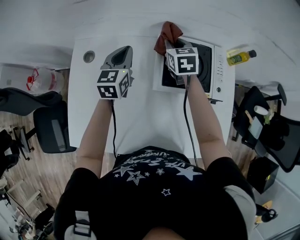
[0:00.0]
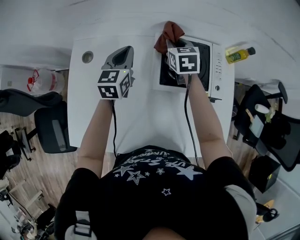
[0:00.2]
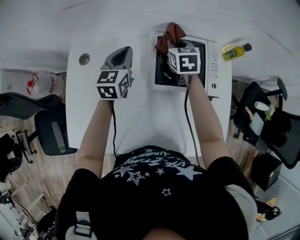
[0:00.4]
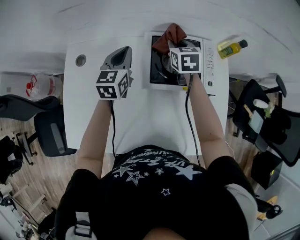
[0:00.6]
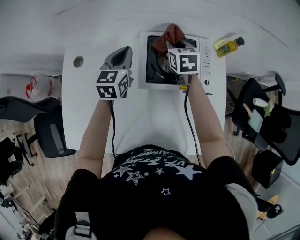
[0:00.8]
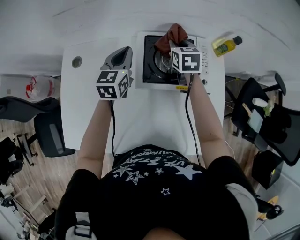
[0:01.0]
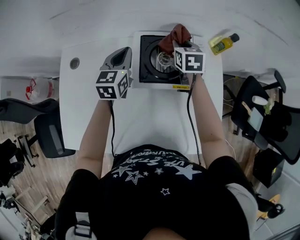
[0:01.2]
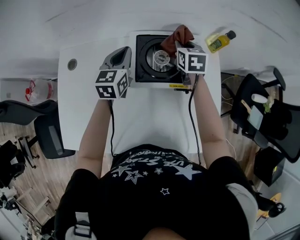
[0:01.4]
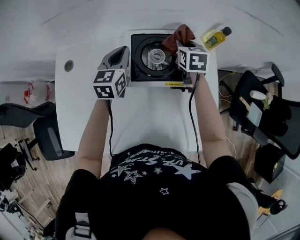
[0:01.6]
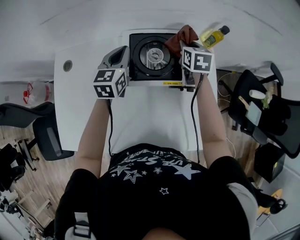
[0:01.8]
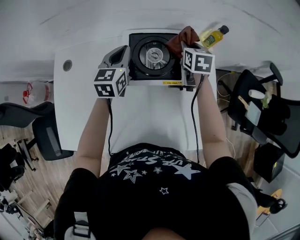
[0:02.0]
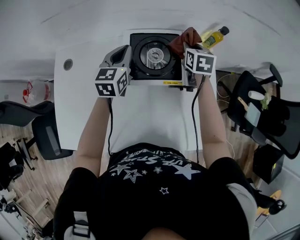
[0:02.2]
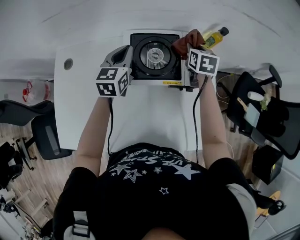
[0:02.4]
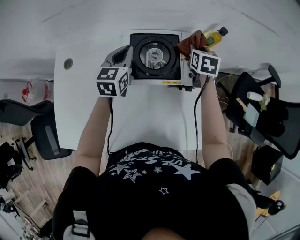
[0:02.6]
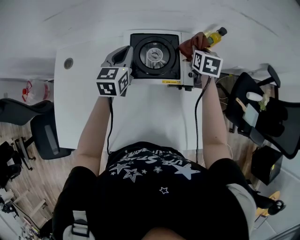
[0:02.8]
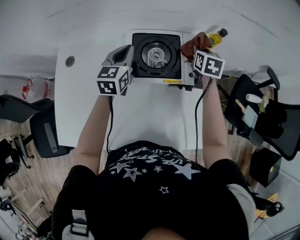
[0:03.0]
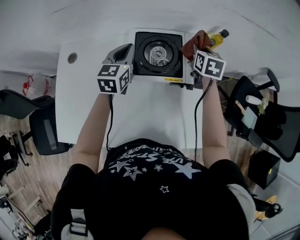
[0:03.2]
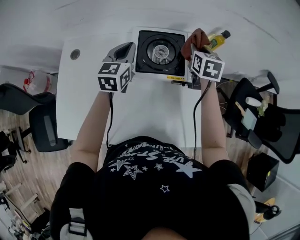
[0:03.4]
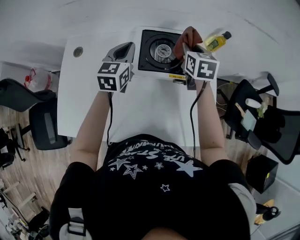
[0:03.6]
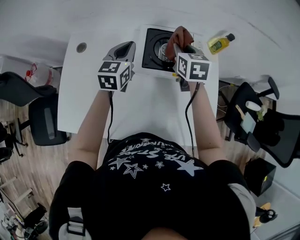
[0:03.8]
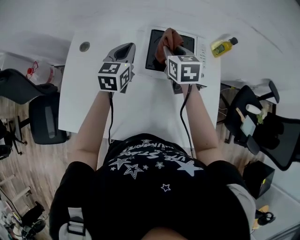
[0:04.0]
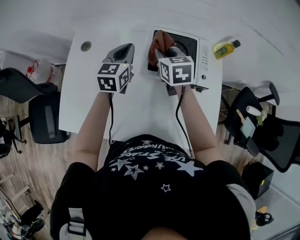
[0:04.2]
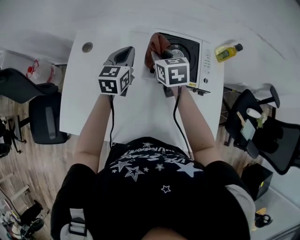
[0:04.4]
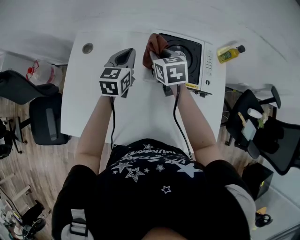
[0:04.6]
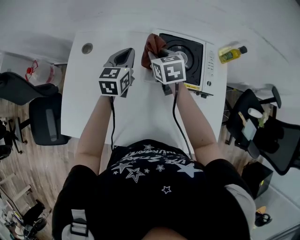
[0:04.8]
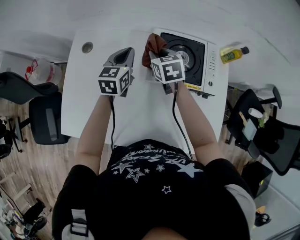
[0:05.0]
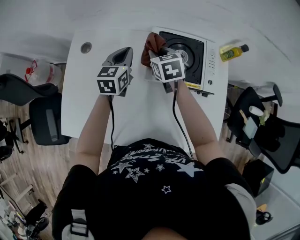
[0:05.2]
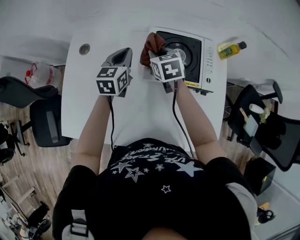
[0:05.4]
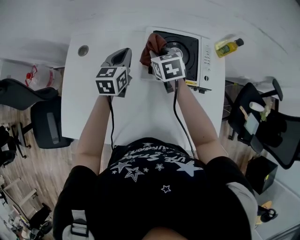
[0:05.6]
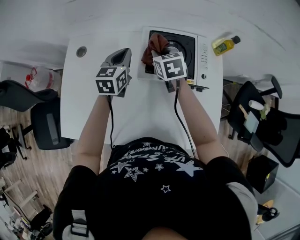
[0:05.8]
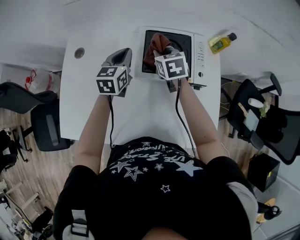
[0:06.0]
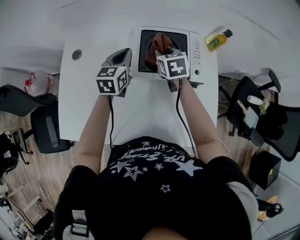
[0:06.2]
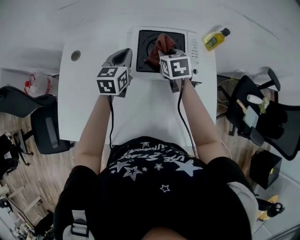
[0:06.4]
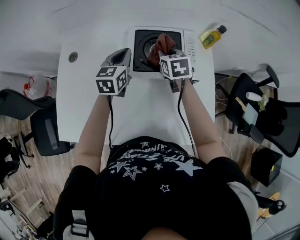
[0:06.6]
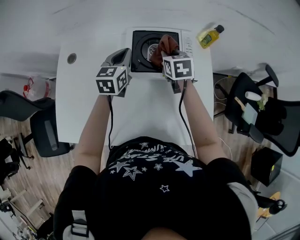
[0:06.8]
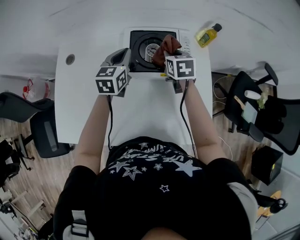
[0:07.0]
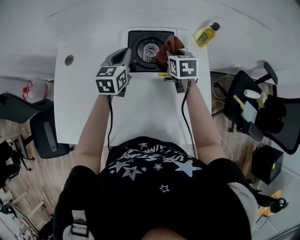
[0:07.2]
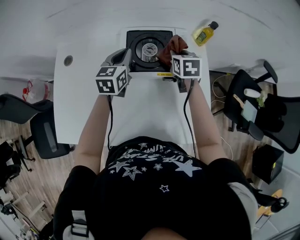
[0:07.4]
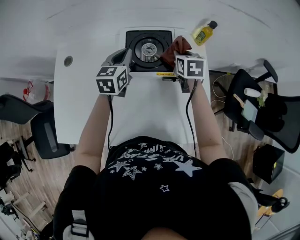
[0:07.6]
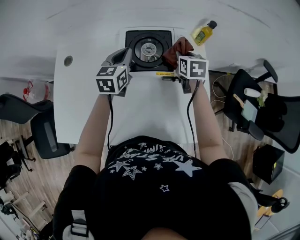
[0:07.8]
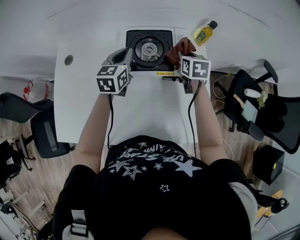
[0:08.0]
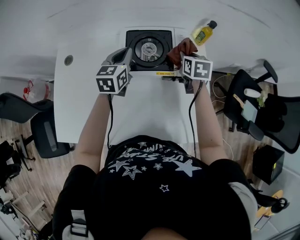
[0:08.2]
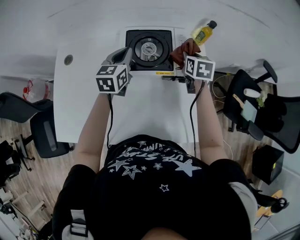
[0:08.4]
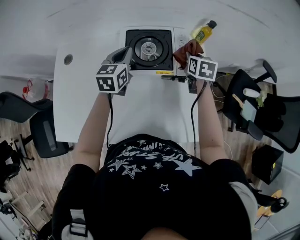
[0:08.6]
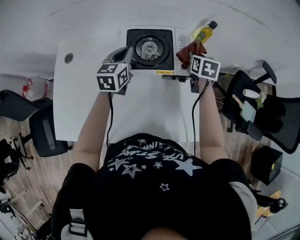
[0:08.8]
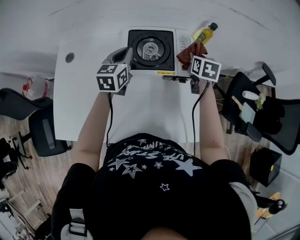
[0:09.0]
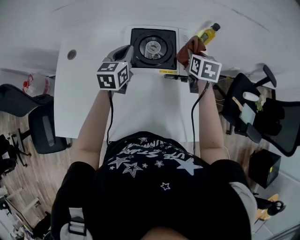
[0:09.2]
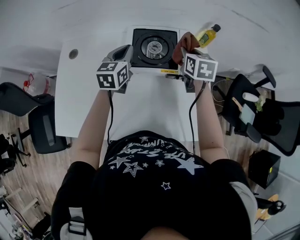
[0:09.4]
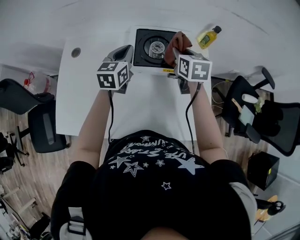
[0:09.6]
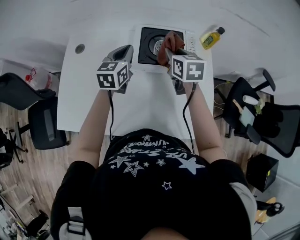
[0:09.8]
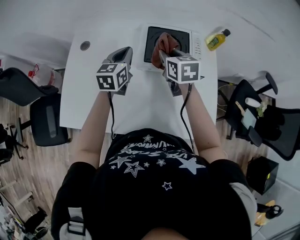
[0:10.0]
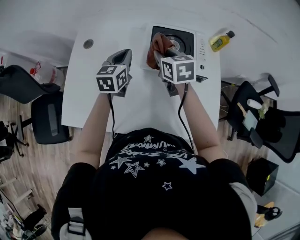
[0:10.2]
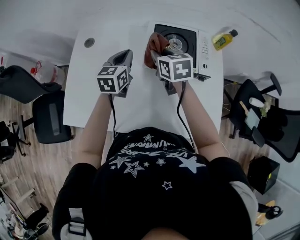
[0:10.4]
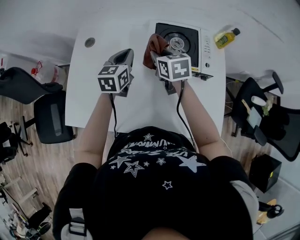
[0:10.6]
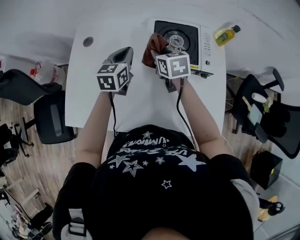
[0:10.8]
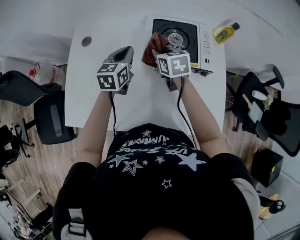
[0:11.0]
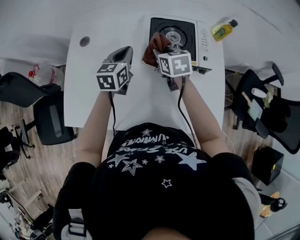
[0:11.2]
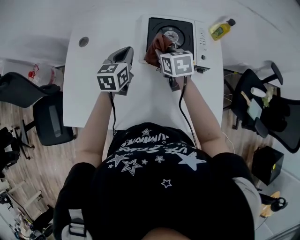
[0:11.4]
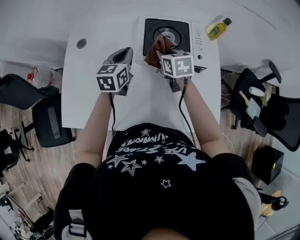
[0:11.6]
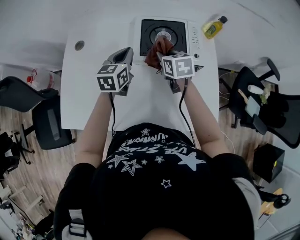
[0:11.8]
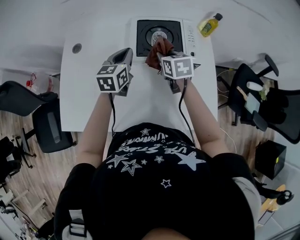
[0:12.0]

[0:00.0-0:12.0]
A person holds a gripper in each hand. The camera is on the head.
0:00.0 to 0:01.6: The right gripper is displaced to the right by some 20 cm. Meanwhile the left gripper goes some 15 cm to the right.
0:01.6 to 0:03.0: The right gripper heads to the right, covering some 10 cm.
0:03.0 to 0:04.4: The right gripper goes approximately 30 cm to the left, and turns by about 30 degrees; the left gripper moves to the left, approximately 10 cm.
0:04.4 to 0:06.0: The right gripper heads to the right, covering roughly 5 cm.
0:06.0 to 0:07.6: The right gripper is displaced to the right by about 20 cm; the left gripper travels to the right by some 10 cm.
0:07.6 to 0:09.0: The right gripper travels to the right by approximately 5 cm.
0:09.0 to 0:10.4: The right gripper shifts approximately 30 cm to the left, and rotates about 30 degrees, while the left gripper shifts about 15 cm to the left and backward.
0:10.4 to 0:12.0: The left gripper travels to the right by some 5 cm, while the right gripper is displaced to the right and downward by approximately 10 cm.

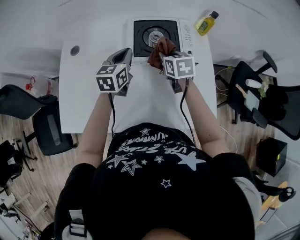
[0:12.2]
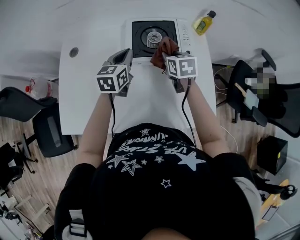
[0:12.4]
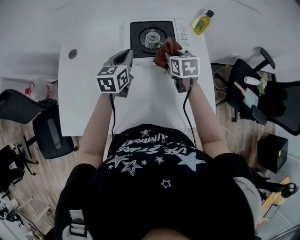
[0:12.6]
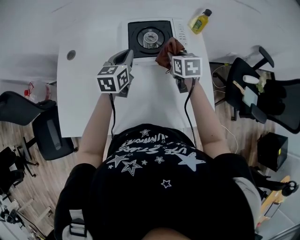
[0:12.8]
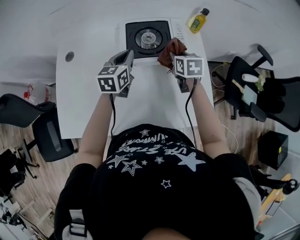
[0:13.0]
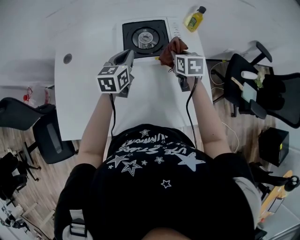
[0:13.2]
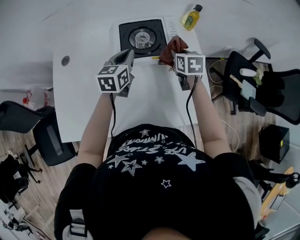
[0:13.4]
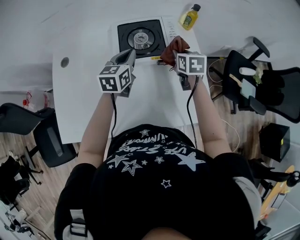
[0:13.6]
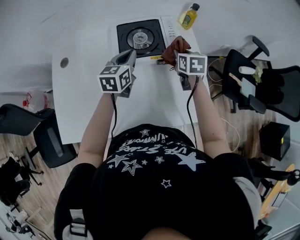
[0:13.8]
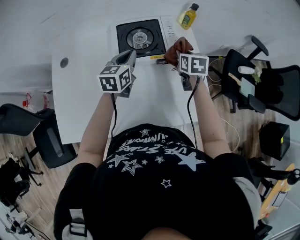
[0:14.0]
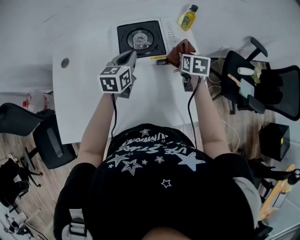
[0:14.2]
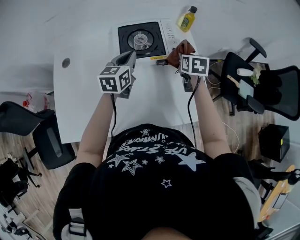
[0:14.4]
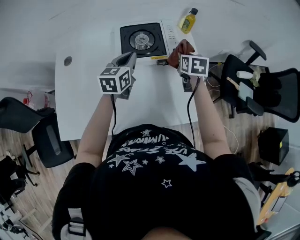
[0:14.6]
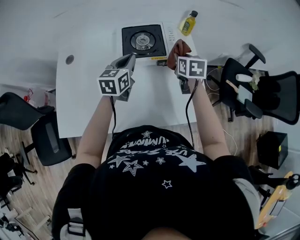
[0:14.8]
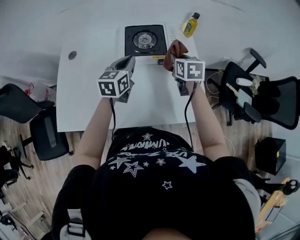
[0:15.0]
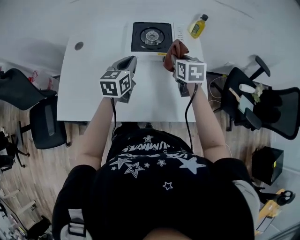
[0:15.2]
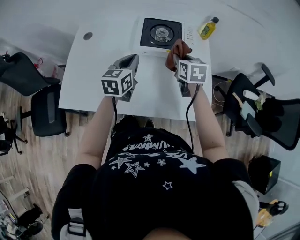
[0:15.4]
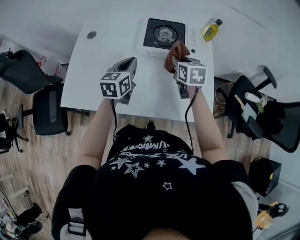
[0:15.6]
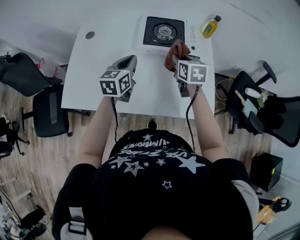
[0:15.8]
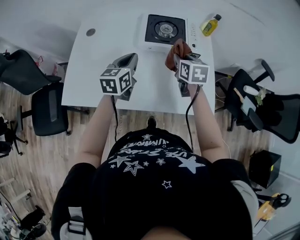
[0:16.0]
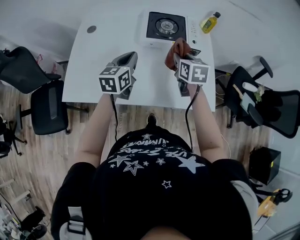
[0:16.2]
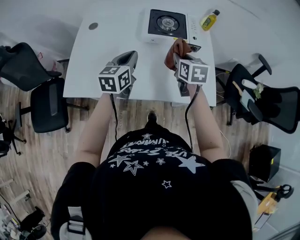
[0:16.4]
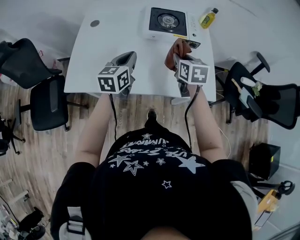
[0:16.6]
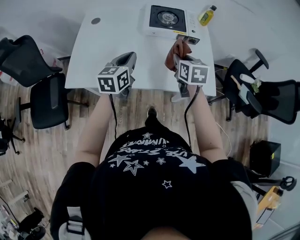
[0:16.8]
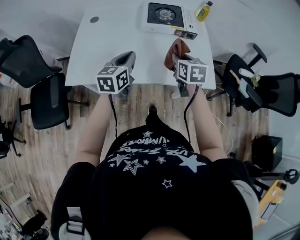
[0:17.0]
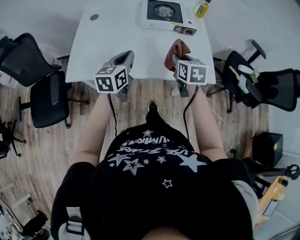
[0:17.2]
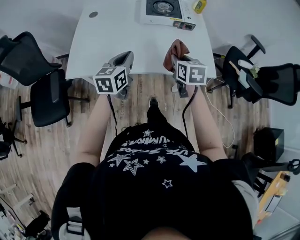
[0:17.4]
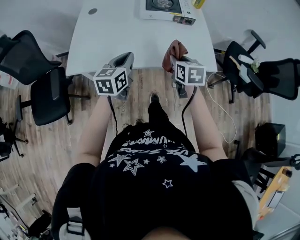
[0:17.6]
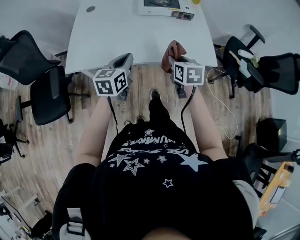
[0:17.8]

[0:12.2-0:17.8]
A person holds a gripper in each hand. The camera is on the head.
0:12.2 to 0:13.6: The left gripper shifts roughly 5 cm to the right. The right gripper shifts roughly 15 cm to the right.
0:13.6 to 0:15.0: The right gripper heads backward and upward, covering about 10 cm, while the left gripper goes about 5 cm backward.
0:15.0 to 0:16.4: Both grippers travel together backward and to the left, some 15 cm.
0:16.4 to 0:17.8: Both grippers move backward, roughly 20 cm.

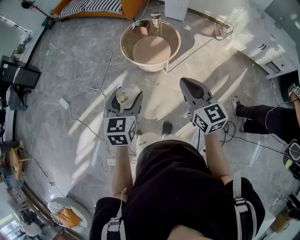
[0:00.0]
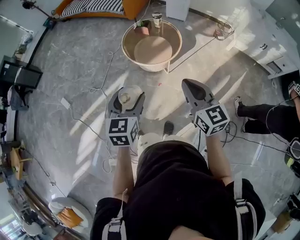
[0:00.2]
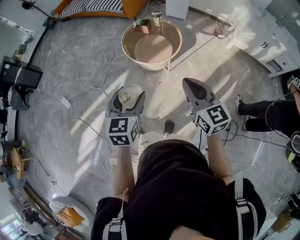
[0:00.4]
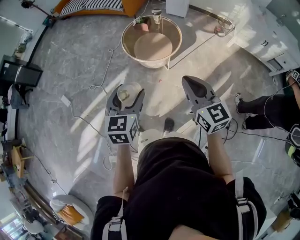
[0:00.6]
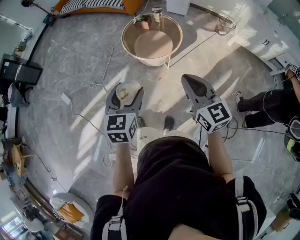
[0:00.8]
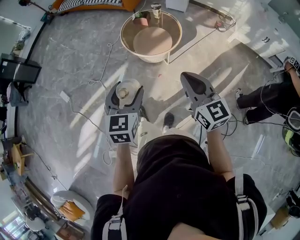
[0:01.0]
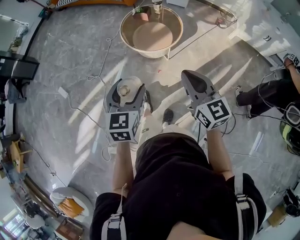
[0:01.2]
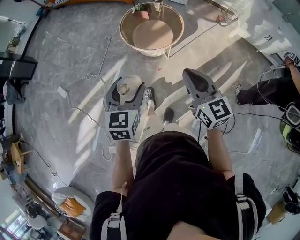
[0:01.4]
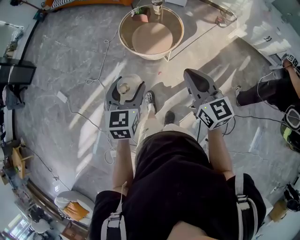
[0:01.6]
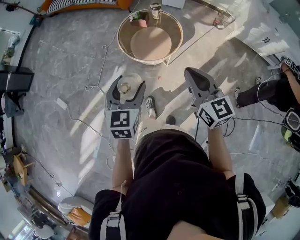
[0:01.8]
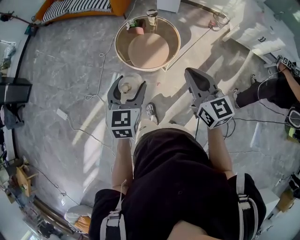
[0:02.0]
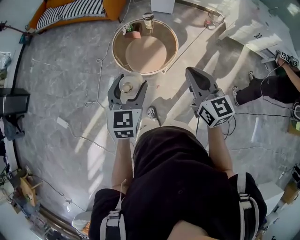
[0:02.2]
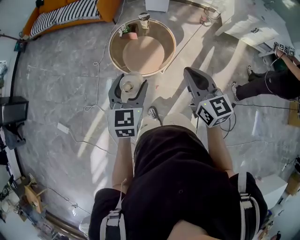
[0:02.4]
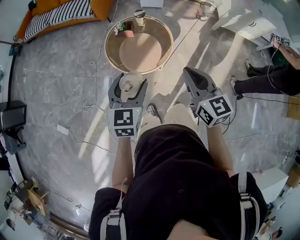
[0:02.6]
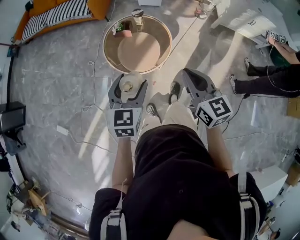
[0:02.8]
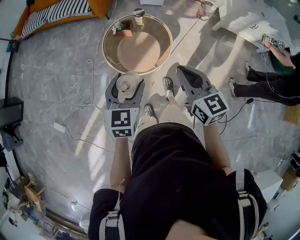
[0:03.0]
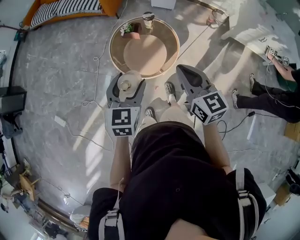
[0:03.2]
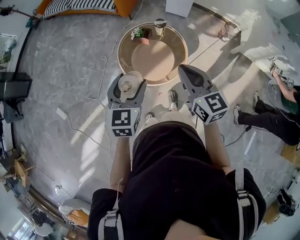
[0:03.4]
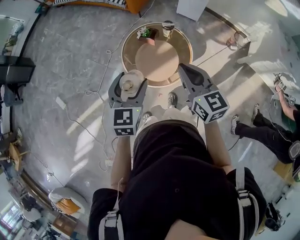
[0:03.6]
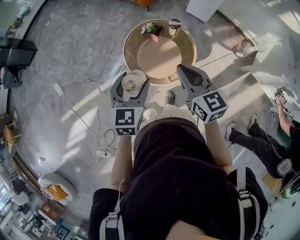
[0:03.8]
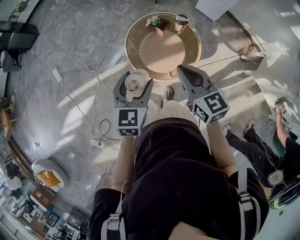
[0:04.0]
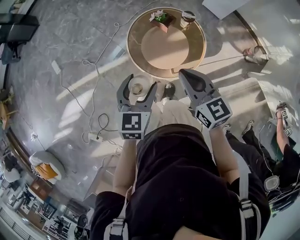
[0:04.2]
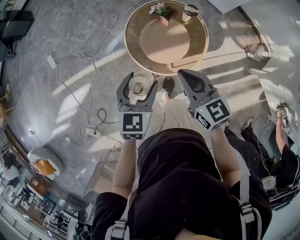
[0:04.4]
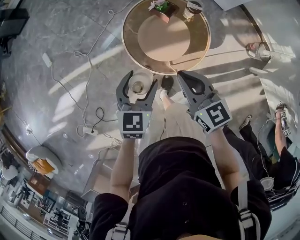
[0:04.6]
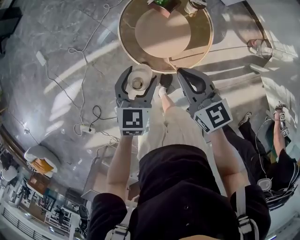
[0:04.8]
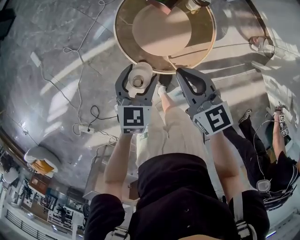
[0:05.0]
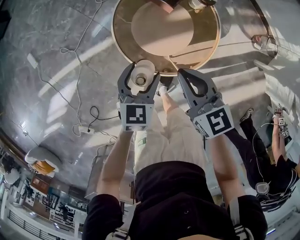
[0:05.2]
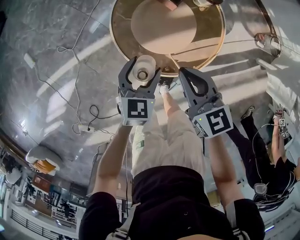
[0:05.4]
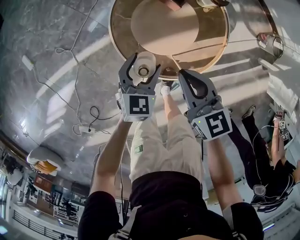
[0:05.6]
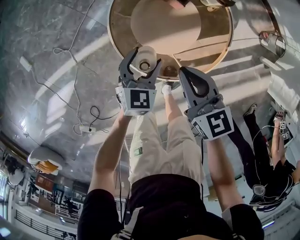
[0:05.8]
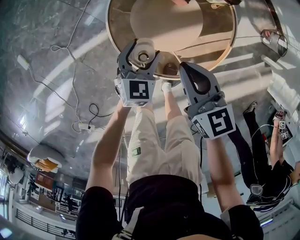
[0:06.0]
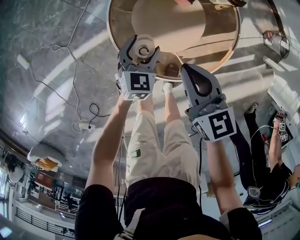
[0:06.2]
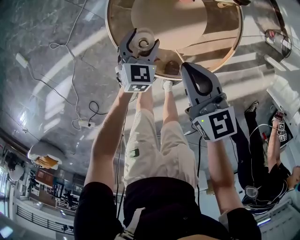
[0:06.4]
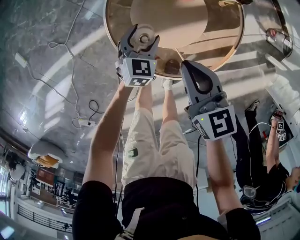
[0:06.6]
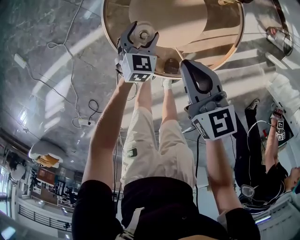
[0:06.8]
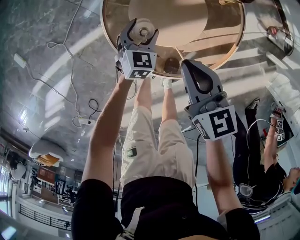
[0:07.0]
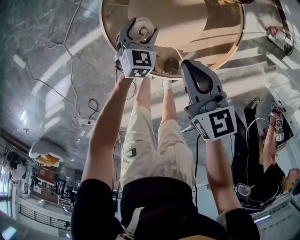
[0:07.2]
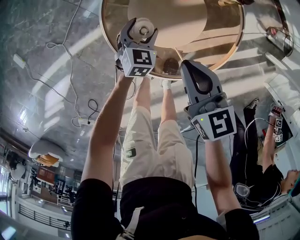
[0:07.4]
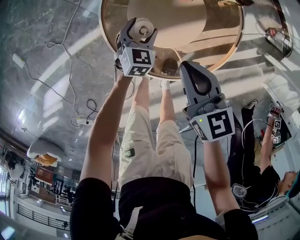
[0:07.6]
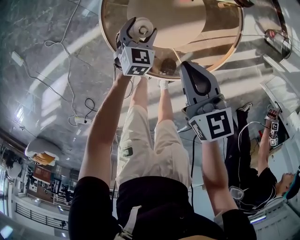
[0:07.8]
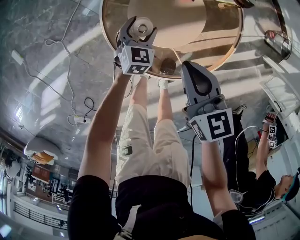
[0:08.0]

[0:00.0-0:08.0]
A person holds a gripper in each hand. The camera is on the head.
0:00.0 to 0:01.6: The two grippers go roughly 5 cm forward.
0:01.6 to 0:03.2: Both grippers travel together forward, approximately 25 cm.
0:03.2 to 0:04.8: Both grippers move downward, about 20 cm. The right gripper changes its angle by about 40 degrees, while the left gripper swivels roughly 30 degrees.
0:04.8 to 0:06.4: The right gripper is displaced downward and forward by roughly 25 cm. The left gripper travels downward and forward by roughly 35 cm.
0:06.4 to 0:08.0: The left gripper travels downward by roughly 5 cm.
